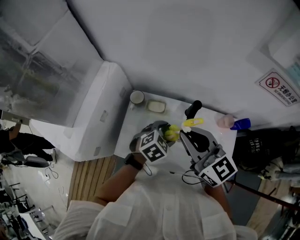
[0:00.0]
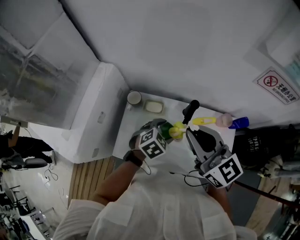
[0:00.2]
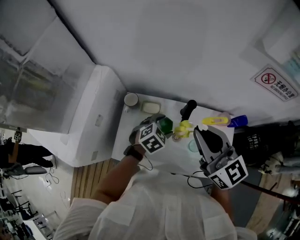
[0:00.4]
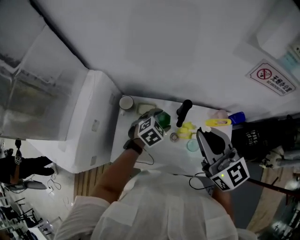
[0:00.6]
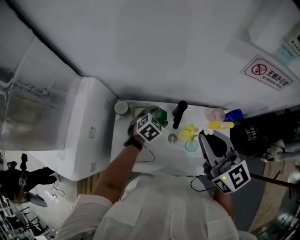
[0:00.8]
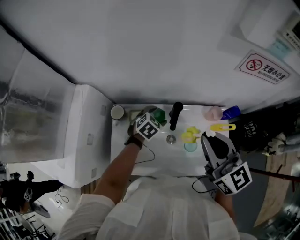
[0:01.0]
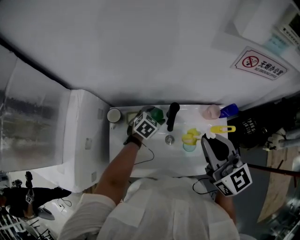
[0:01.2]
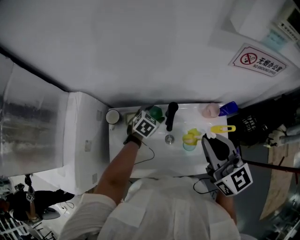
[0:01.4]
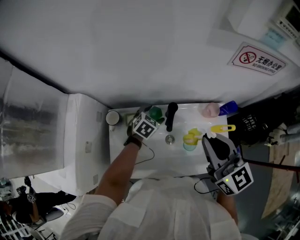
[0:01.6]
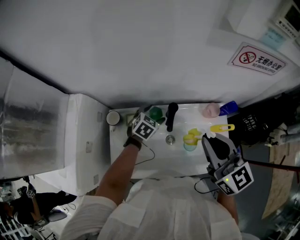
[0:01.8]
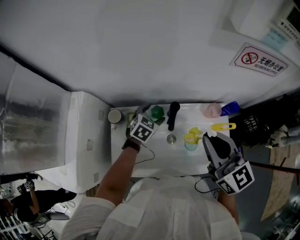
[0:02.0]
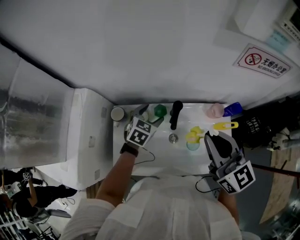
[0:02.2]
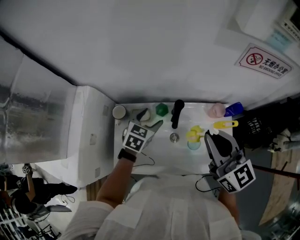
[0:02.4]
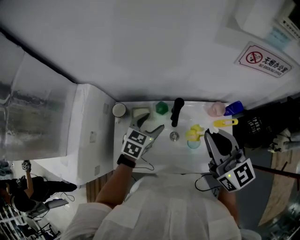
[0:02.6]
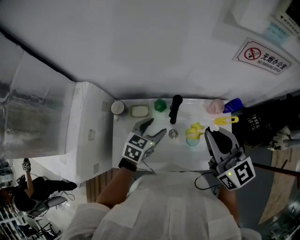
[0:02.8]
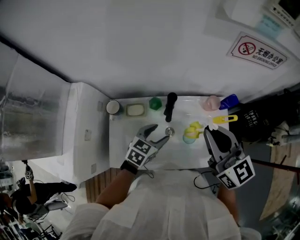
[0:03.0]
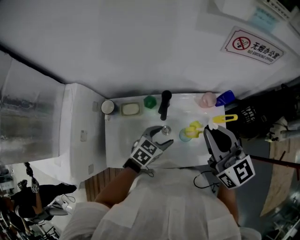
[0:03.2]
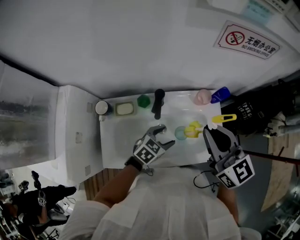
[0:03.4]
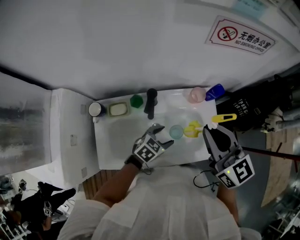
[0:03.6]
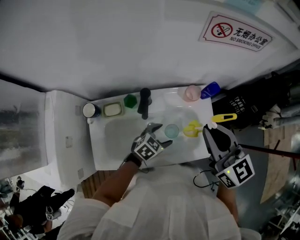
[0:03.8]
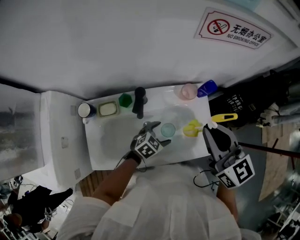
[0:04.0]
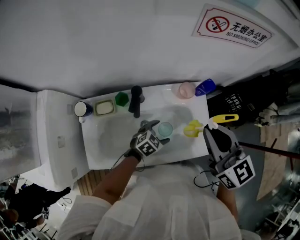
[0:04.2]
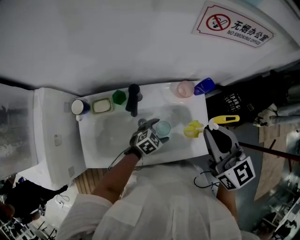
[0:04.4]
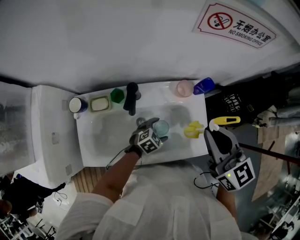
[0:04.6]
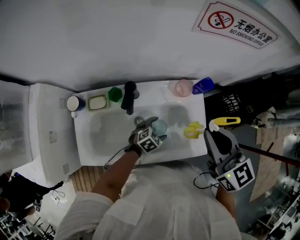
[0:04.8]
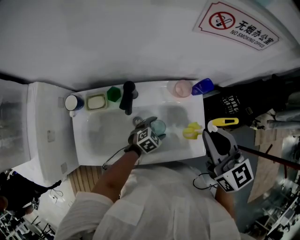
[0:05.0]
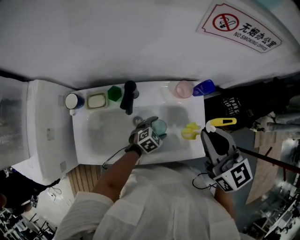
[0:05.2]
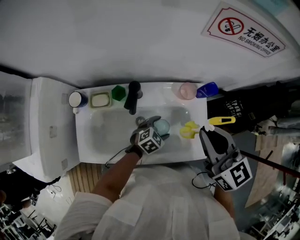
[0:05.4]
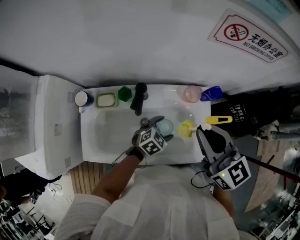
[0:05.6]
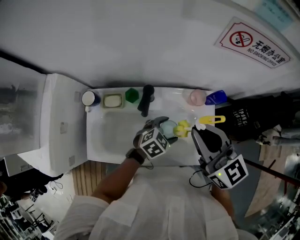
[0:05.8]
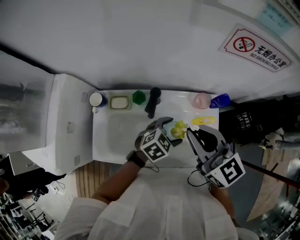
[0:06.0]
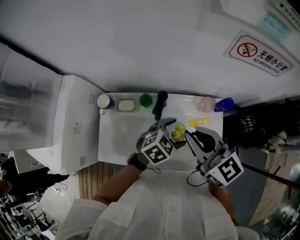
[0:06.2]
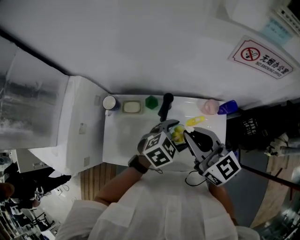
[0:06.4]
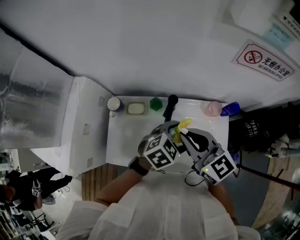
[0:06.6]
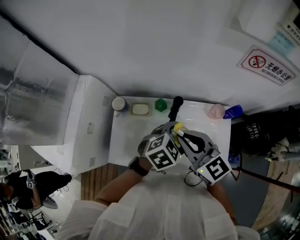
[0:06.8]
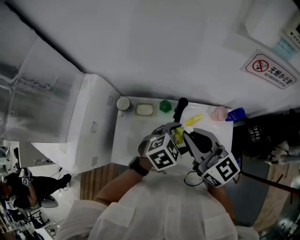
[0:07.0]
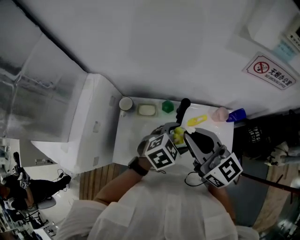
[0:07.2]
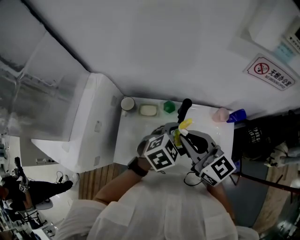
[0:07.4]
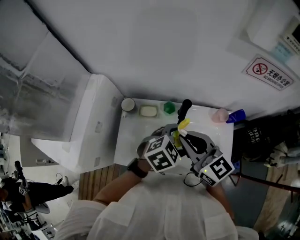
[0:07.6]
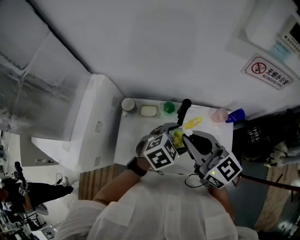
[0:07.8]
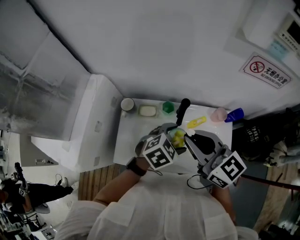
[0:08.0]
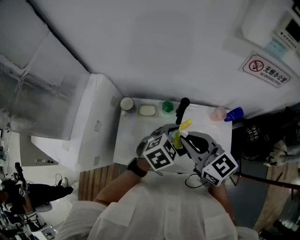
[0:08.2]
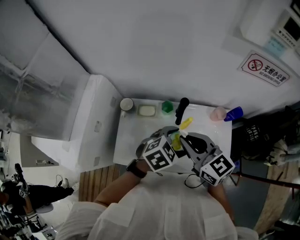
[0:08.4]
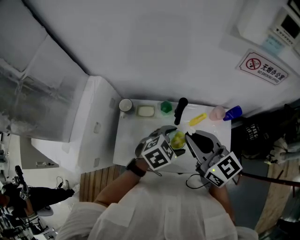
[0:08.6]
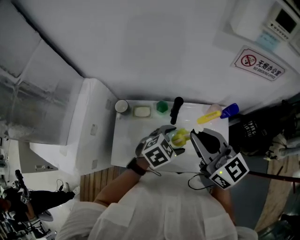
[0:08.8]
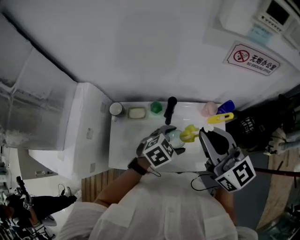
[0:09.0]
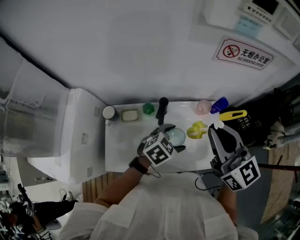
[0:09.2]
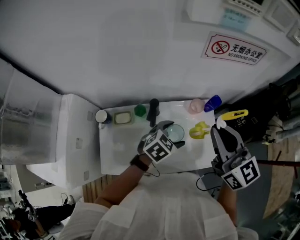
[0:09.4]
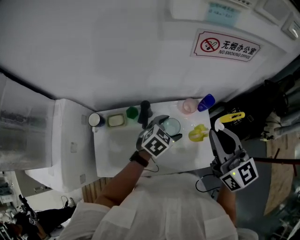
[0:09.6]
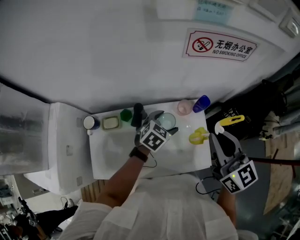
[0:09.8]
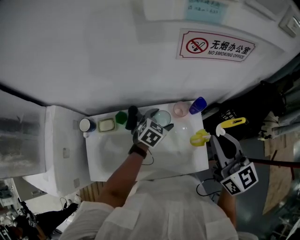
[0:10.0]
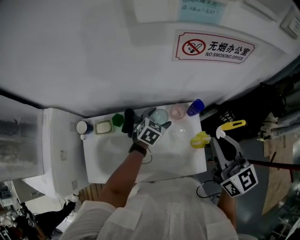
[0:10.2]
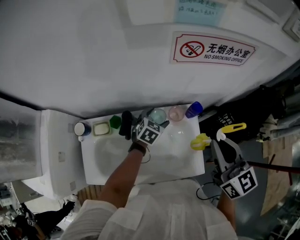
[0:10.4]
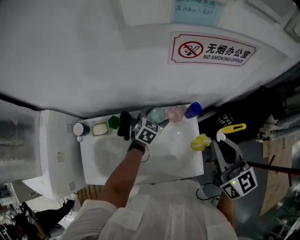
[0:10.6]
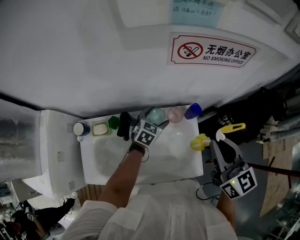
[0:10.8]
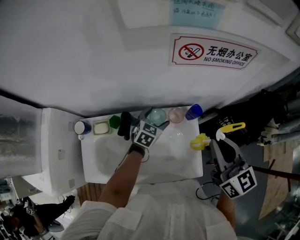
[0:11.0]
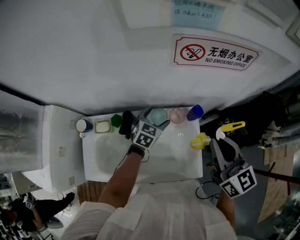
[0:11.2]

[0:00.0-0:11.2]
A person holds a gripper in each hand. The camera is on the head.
0:00.0 to 0:01.6: The left gripper travels forward and downward by roughly 15 cm; the right gripper goes approximately 15 cm to the right, and swivels roughly 30 degrees.
0:01.6 to 0:03.2: The left gripper travels backward and to the right by some 20 cm.
0:03.2 to 0:04.8: The right gripper moves to the right, roughly 10 cm, while the left gripper heads downward and to the right, covering approximately 20 cm, and rotates about 20 degrees.
0:04.8 to 0:06.4: The right gripper shifts roughly 15 cm to the left, and turns by approximately 20 degrees. The left gripper moves upward, about 20 cm.
0:06.4 to 0:08.0: The left gripper is displaced to the left by some 10 cm; the right gripper shifts about 10 cm to the left and upward.
0:08.0 to 0:09.6: The right gripper moves to the right, approximately 20 cm, and rotates approximately 30 degrees. Meanwhile the left gripper moves to the right, forward and downward, some 15 cm.
0:09.6 to 0:11.2: The left gripper is displaced forward and downward by roughly 15 cm. The right gripper goes roughly 10 cm to the right.

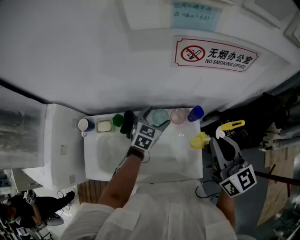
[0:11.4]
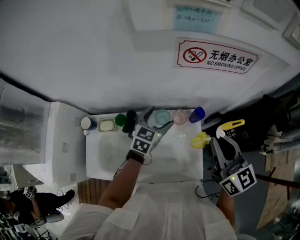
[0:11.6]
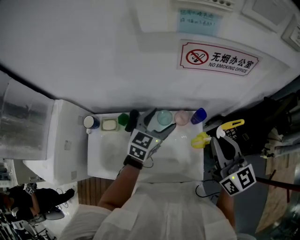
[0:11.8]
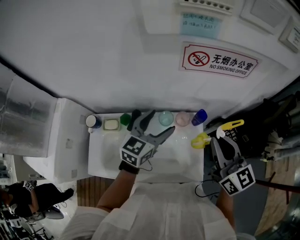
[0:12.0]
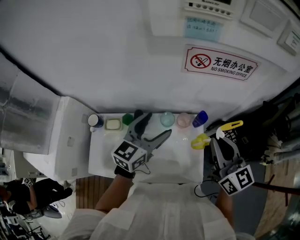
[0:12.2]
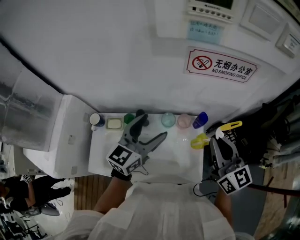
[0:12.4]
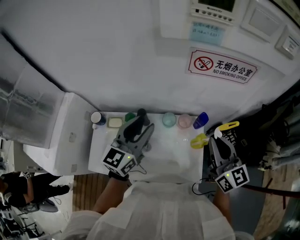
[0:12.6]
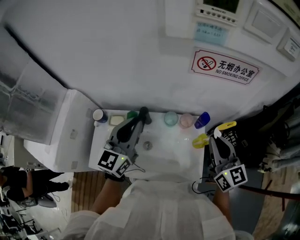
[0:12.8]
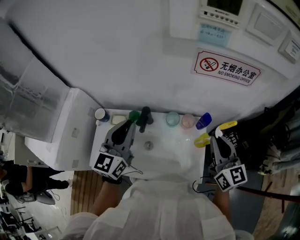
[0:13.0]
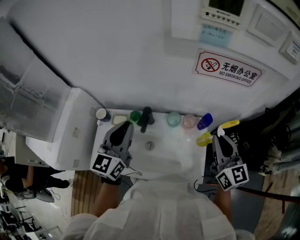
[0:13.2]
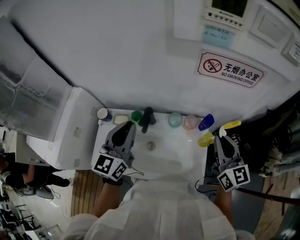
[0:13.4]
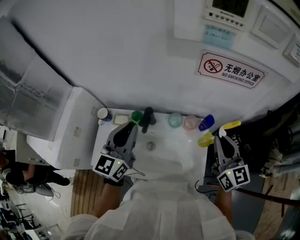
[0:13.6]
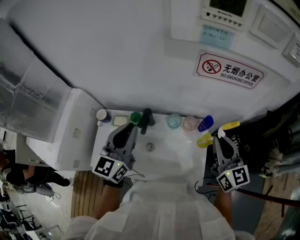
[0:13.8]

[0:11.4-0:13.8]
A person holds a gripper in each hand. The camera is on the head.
0:11.4 to 0:12.6: The left gripper moves upward and backward, about 25 cm, points its fingers about 30 degrees further upward, and closes.
0:12.6 to 0:13.8: The left gripper goes some 5 cm to the left, and closes up.

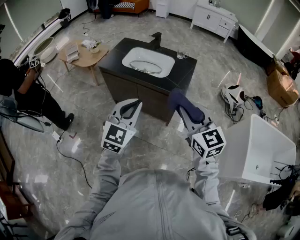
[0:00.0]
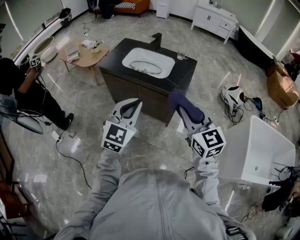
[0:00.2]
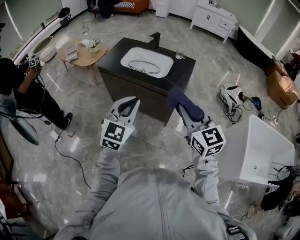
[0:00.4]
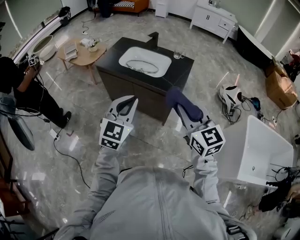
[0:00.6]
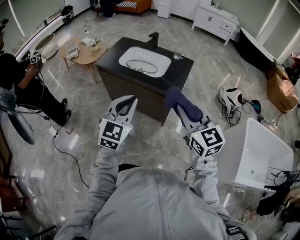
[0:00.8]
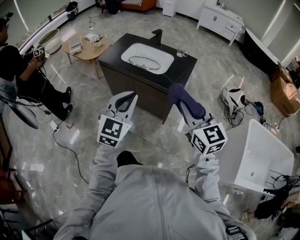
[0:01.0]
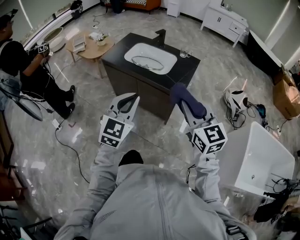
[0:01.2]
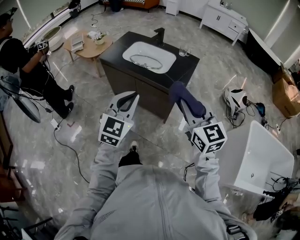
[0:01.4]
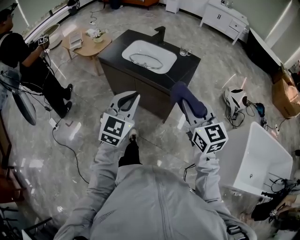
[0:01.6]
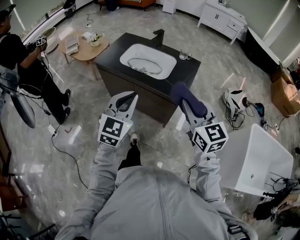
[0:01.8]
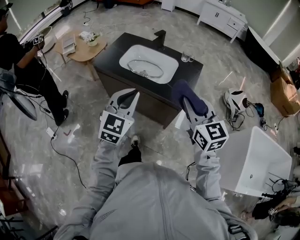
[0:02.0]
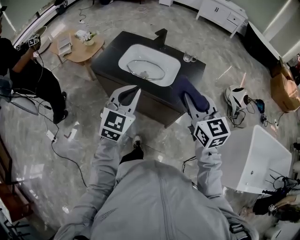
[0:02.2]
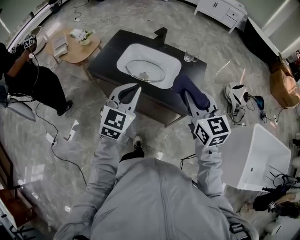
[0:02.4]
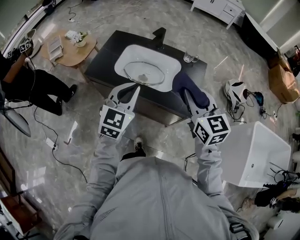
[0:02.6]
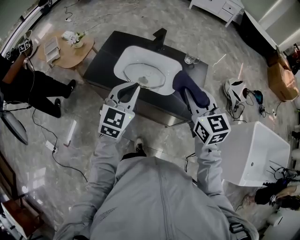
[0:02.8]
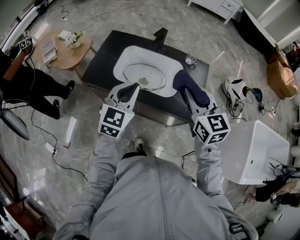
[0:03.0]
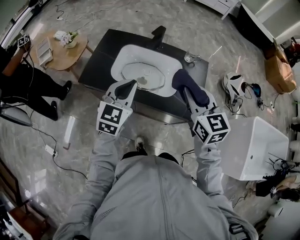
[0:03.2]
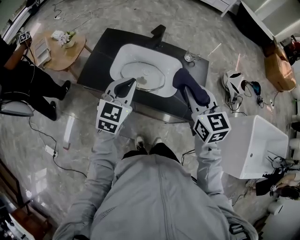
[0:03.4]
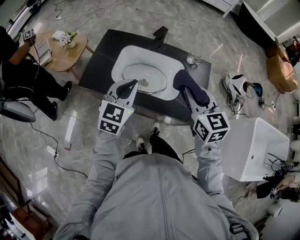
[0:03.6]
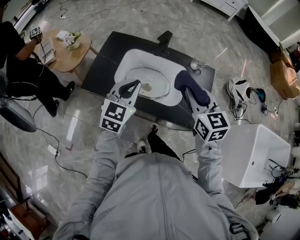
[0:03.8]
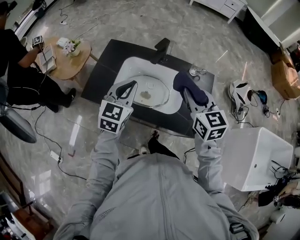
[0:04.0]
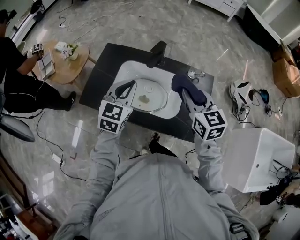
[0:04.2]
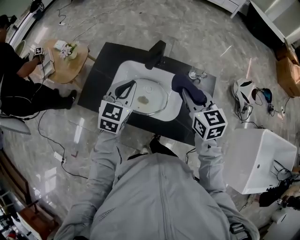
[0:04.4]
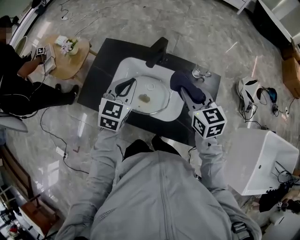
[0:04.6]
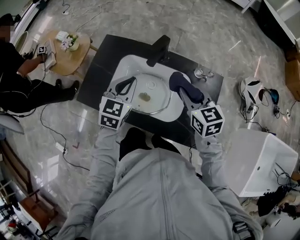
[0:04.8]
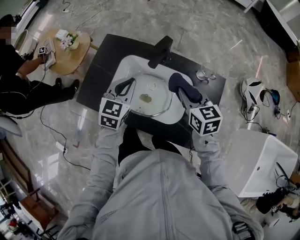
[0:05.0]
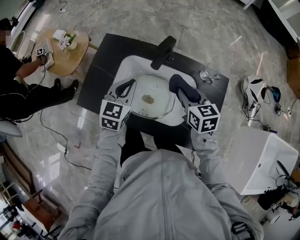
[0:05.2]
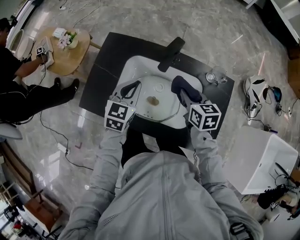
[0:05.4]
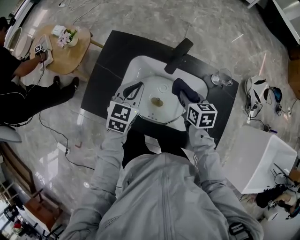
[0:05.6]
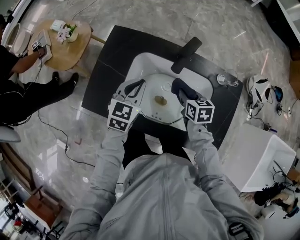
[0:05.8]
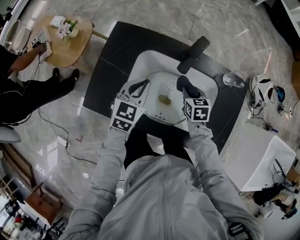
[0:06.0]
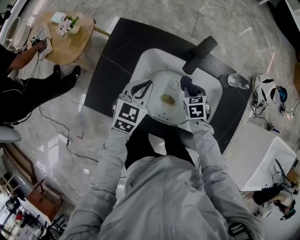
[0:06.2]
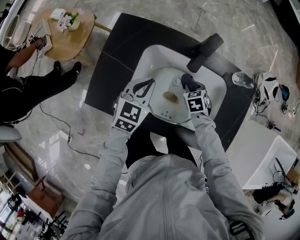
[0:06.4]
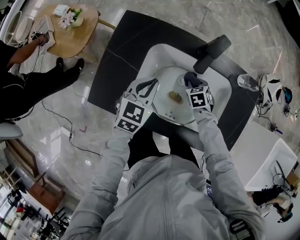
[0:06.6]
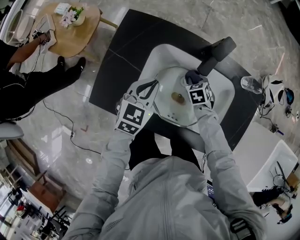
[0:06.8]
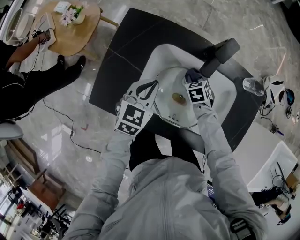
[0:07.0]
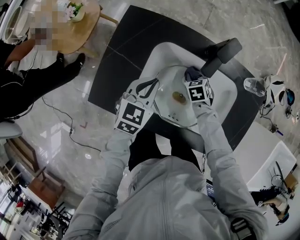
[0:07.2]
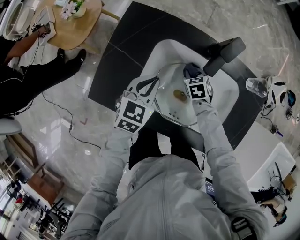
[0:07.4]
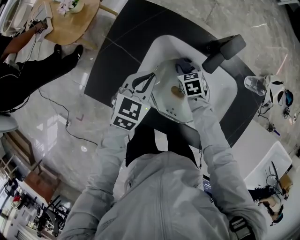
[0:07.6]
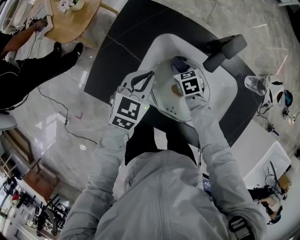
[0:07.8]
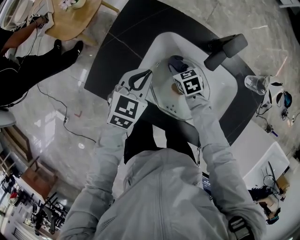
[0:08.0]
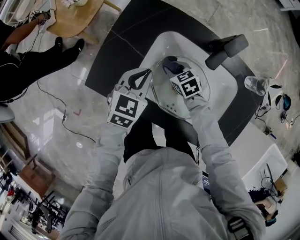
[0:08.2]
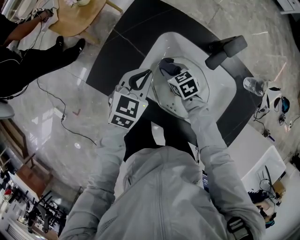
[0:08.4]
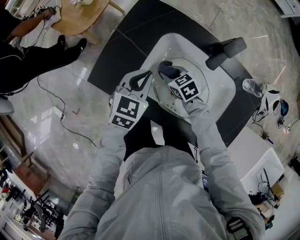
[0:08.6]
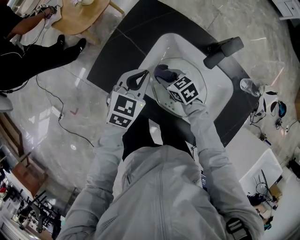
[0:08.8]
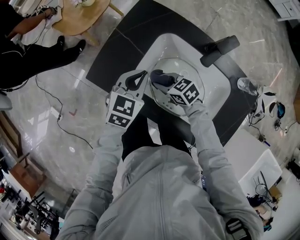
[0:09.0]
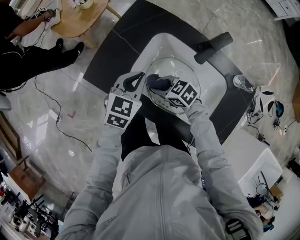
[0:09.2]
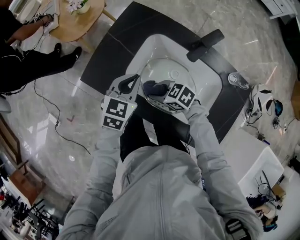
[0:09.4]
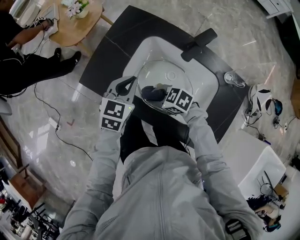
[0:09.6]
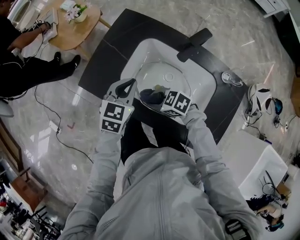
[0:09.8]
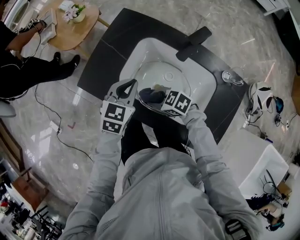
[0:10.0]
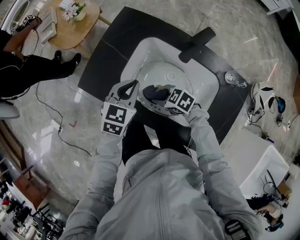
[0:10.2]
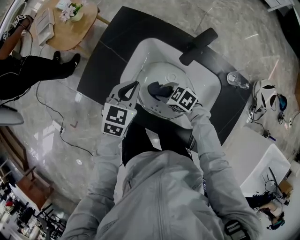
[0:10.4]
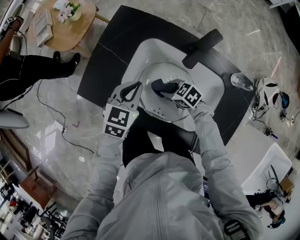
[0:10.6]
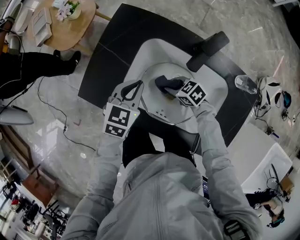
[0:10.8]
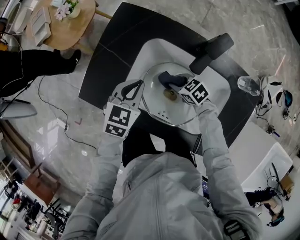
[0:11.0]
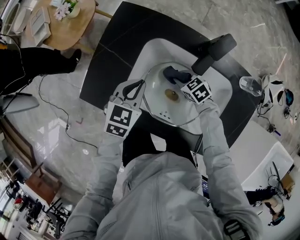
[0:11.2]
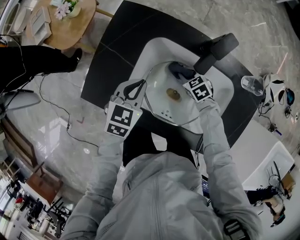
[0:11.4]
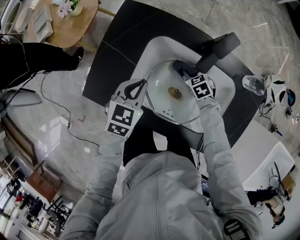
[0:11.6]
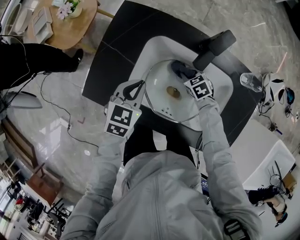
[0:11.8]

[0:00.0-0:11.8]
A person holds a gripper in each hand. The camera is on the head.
0:00.0 to 0:01.4: The right gripper ends up about 5 cm from where it was.
0:01.4 to 0:03.0: Both grippers travel together forward, some 35 cm.
0:03.0 to 0:04.4: Both grippers move forward, about 15 cm.
0:04.4 to 0:06.0: The right gripper travels downward by roughly 30 cm, and rotates roughly 30 degrees. Meanwhile the left gripper is displaced downward, forward and to the left by roughly 20 cm.
0:06.0 to 0:07.4: The left gripper ends up roughly 5 cm from where it was; the right gripper moves downward and to the left, roughly 15 cm, and swivels about 20 degrees.
0:07.4 to 0:08.8: The left gripper moves roughly 5 cm; the right gripper ends up approximately 20 cm from where it was, and swivels about 40 degrees.
0:08.8 to 0:10.4: The right gripper travels backward by about 10 cm.
0:10.4 to 0:11.8: The right gripper moves approximately 15 cm, and turns by approximately 30 degrees.
